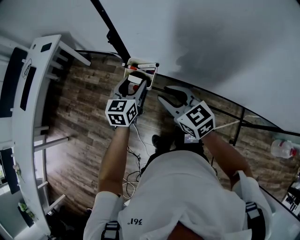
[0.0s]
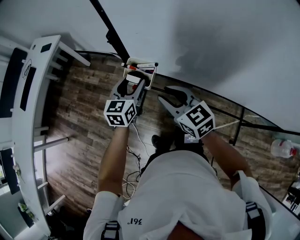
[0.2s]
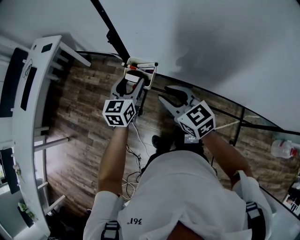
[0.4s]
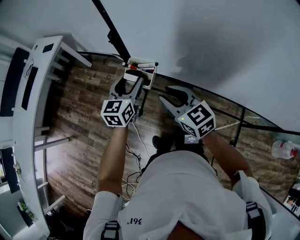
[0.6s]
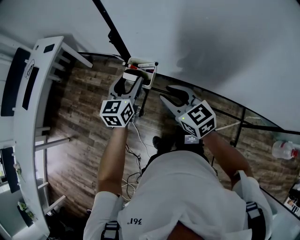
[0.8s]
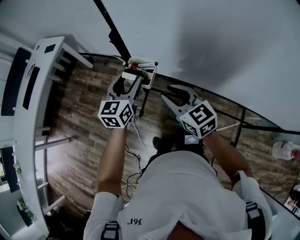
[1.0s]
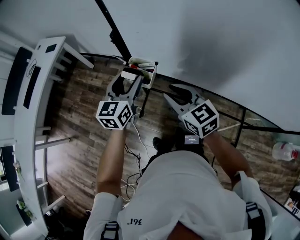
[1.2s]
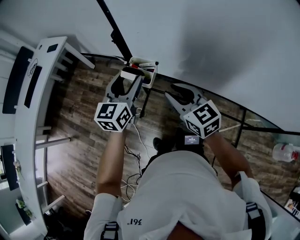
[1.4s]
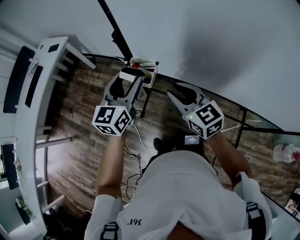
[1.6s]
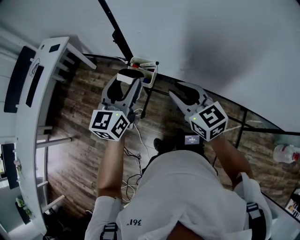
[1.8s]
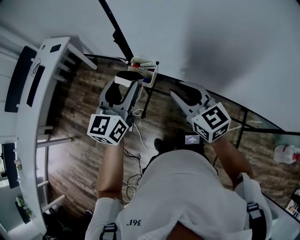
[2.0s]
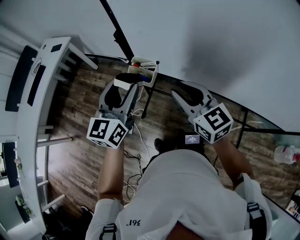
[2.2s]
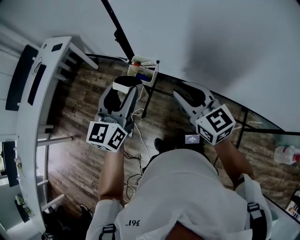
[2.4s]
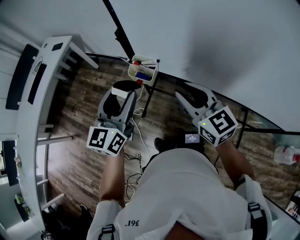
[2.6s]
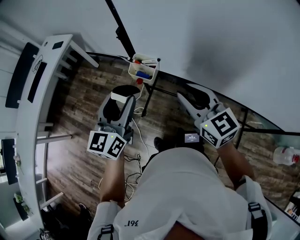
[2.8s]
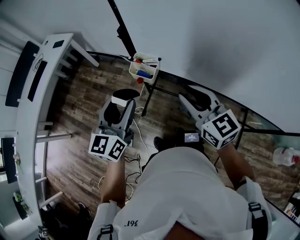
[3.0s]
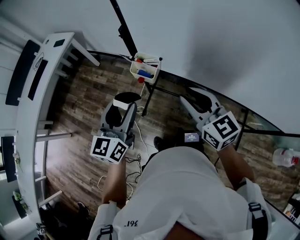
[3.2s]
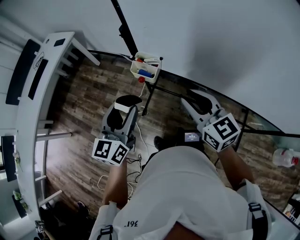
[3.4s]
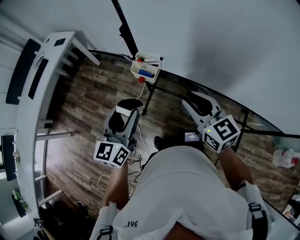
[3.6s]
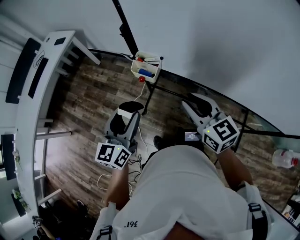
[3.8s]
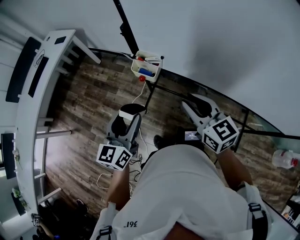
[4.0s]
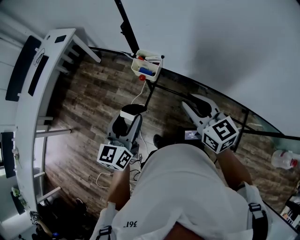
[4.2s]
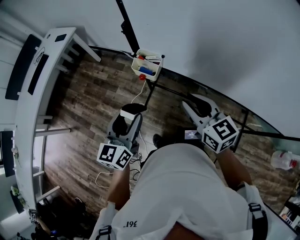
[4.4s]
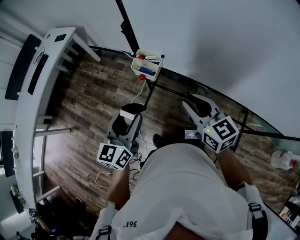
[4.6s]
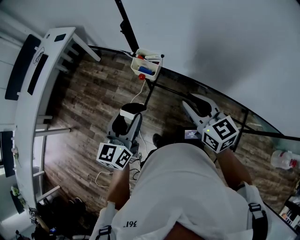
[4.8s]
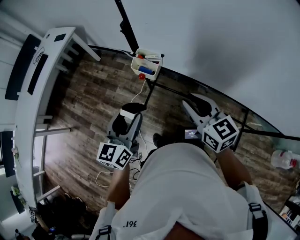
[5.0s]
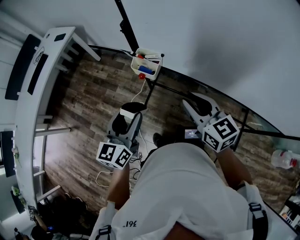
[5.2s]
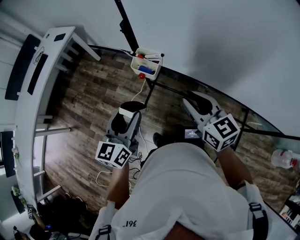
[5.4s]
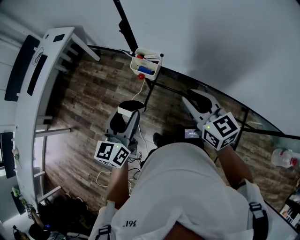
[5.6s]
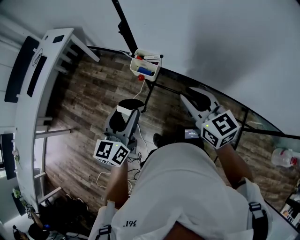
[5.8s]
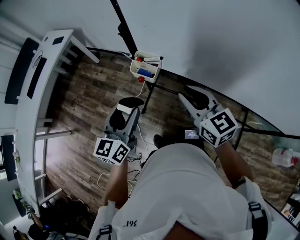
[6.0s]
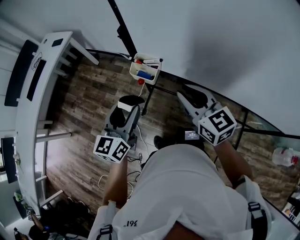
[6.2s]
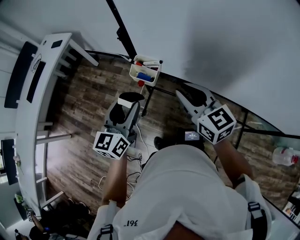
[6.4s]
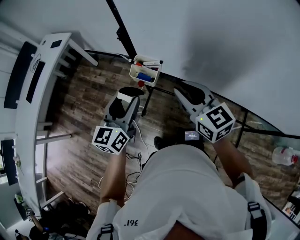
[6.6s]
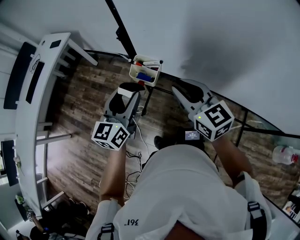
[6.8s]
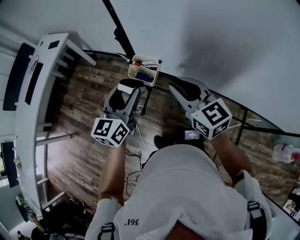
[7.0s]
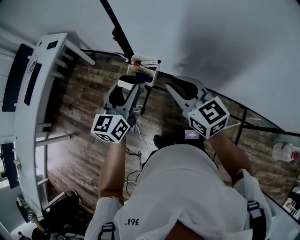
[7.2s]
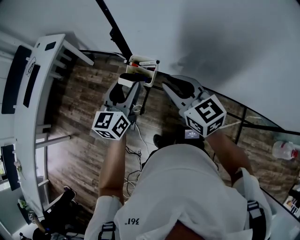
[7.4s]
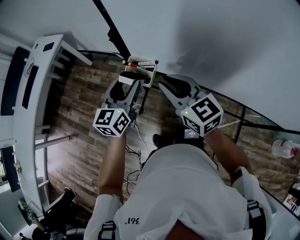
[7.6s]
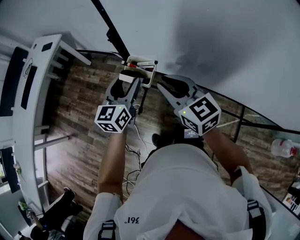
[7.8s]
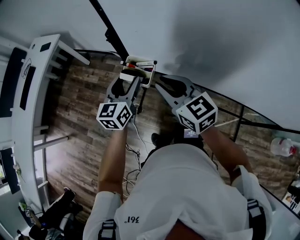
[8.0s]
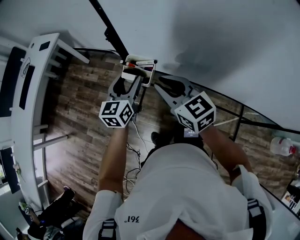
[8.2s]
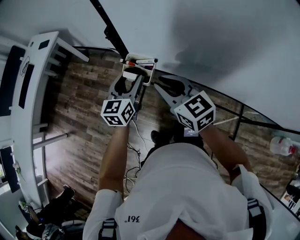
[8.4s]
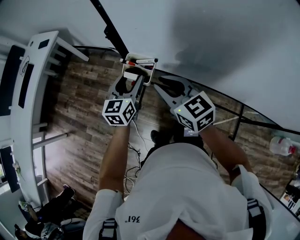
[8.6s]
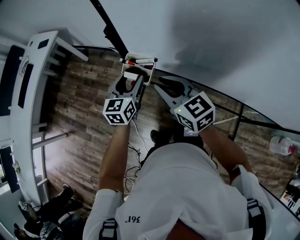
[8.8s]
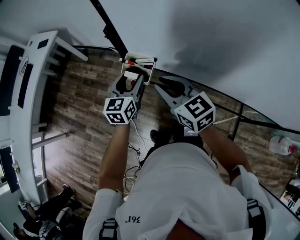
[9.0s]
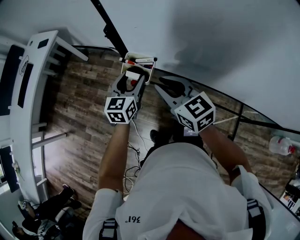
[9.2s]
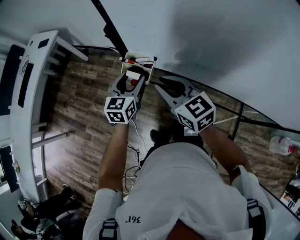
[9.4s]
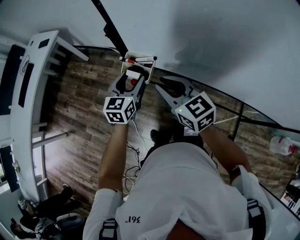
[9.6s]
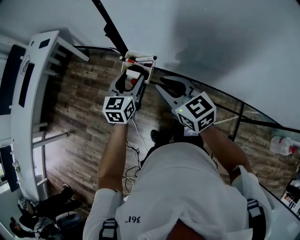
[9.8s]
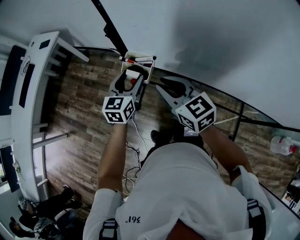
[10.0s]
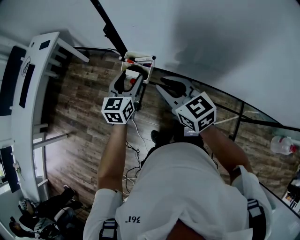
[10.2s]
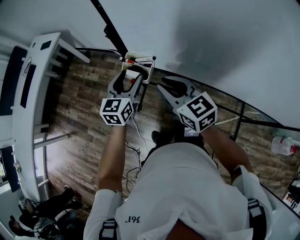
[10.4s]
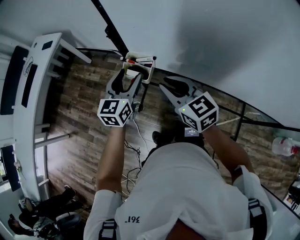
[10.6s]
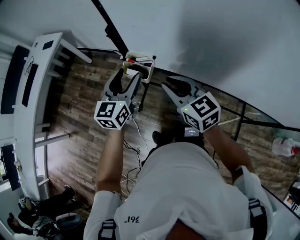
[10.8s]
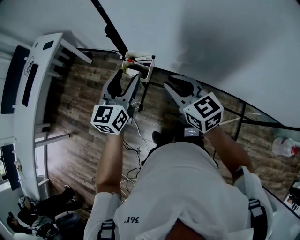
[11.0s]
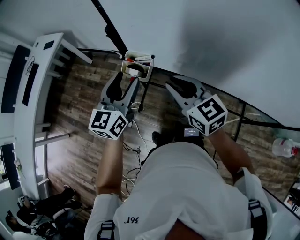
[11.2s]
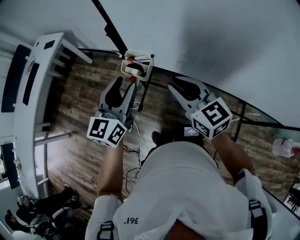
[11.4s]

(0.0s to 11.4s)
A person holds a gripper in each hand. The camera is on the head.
0.0s - 1.4s: The left gripper travels upward by about 10 cm.
1.4s - 2.8s: The left gripper goes some 10 cm backward. The right gripper is displaced upward by approximately 5 cm.
2.8s - 4.2s: The right gripper shifts by approximately 5 cm. Meanwhile the left gripper shifts about 10 cm downward and backward.
4.2s - 5.6s: There are only small adjustments of the grippers.
5.6s - 7.2s: The right gripper moves forward, some 5 cm. Meanwhile the left gripper shifts some 10 cm forward.
7.2s - 8.6s: The right gripper ends up approximately 5 cm from where it was; the left gripper travels downward and forward by approximately 10 cm.
8.6s - 10.0s: The grippers stay close to where they were, moving slightly.
10.0s - 11.4s: The right gripper ends up some 5 cm from where it was; the left gripper goes some 15 cm upward and backward.

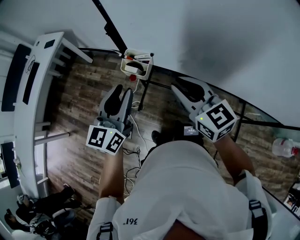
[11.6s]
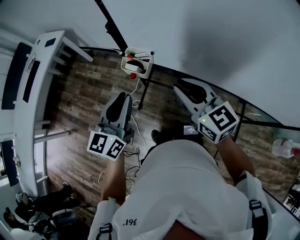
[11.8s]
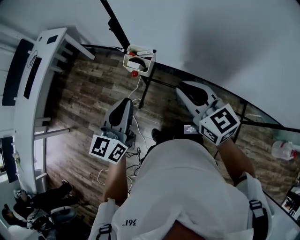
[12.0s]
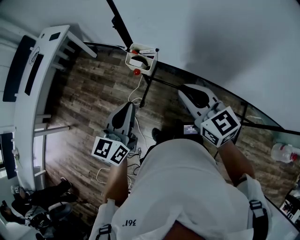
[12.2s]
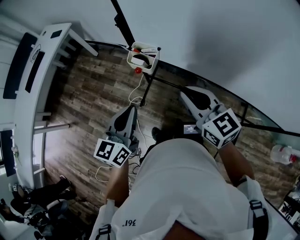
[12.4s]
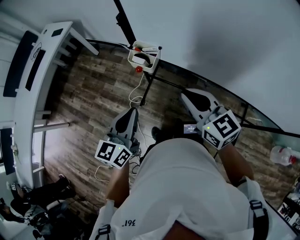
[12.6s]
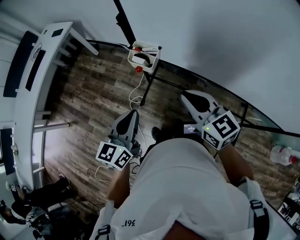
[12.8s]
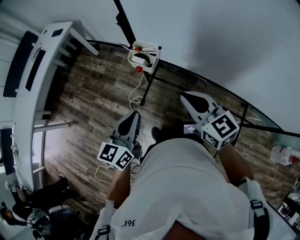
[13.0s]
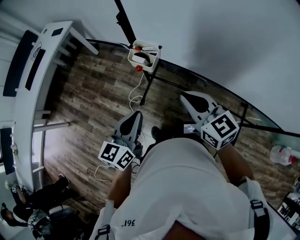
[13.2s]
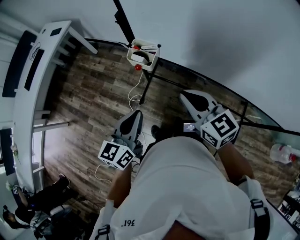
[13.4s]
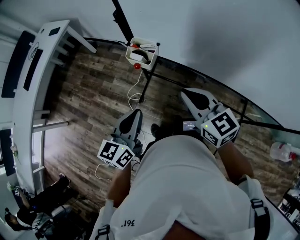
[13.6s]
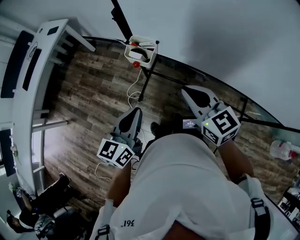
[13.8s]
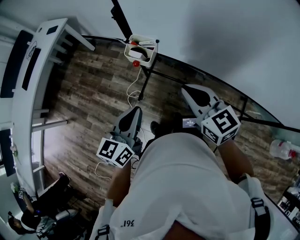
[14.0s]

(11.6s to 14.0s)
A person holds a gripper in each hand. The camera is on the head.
11.6s - 12.8s: The left gripper shifts approximately 10 cm backward and downward, and closes. The right gripper is displaced backward by roughly 5 cm.
12.8s - 14.0s: The grippers make only small movements.

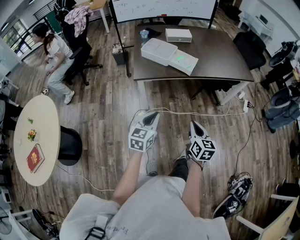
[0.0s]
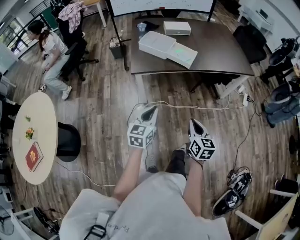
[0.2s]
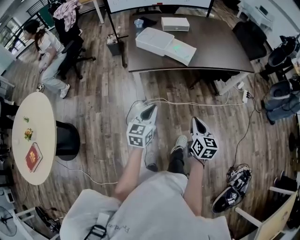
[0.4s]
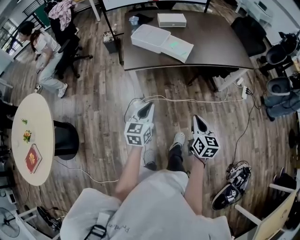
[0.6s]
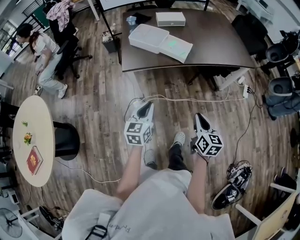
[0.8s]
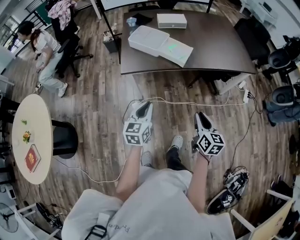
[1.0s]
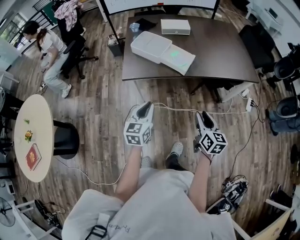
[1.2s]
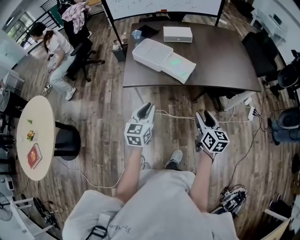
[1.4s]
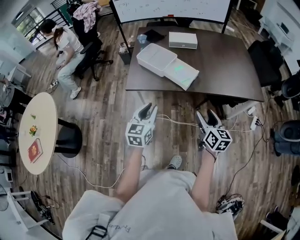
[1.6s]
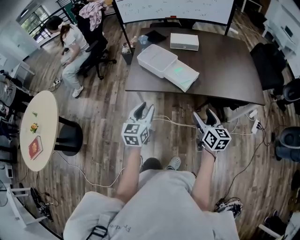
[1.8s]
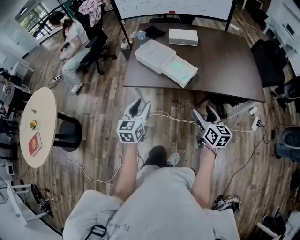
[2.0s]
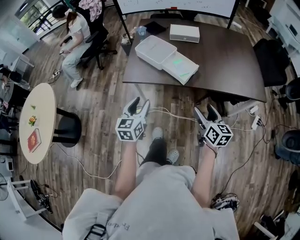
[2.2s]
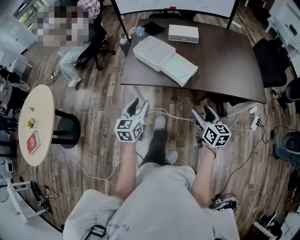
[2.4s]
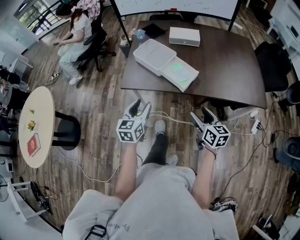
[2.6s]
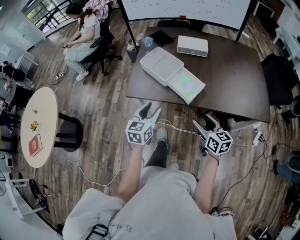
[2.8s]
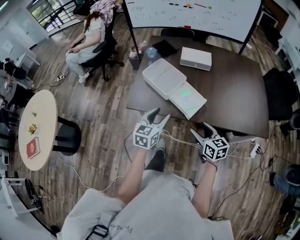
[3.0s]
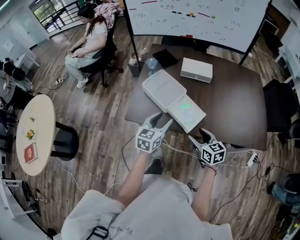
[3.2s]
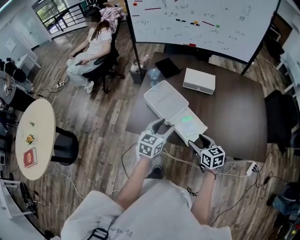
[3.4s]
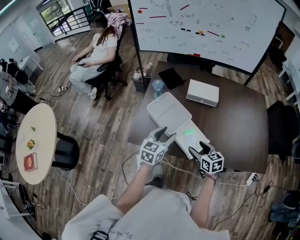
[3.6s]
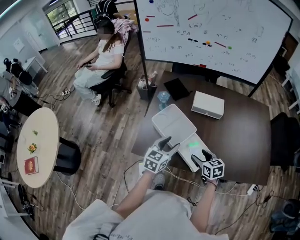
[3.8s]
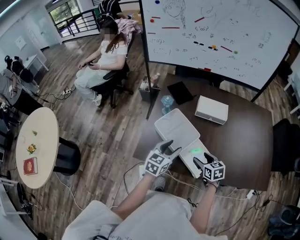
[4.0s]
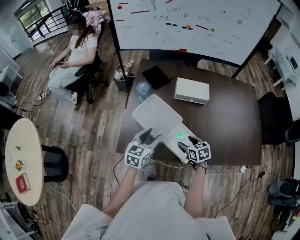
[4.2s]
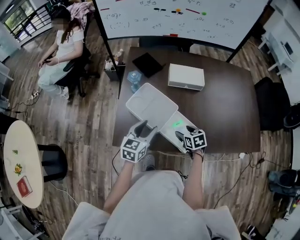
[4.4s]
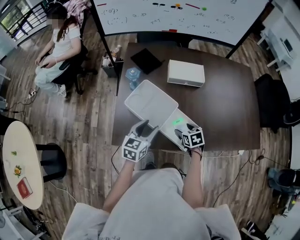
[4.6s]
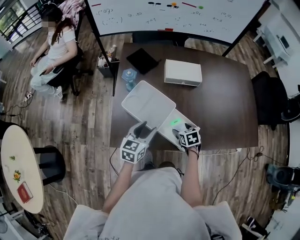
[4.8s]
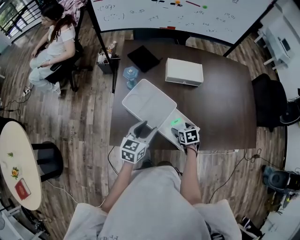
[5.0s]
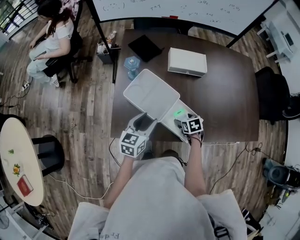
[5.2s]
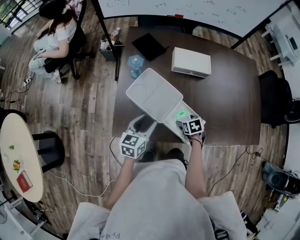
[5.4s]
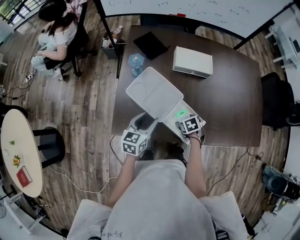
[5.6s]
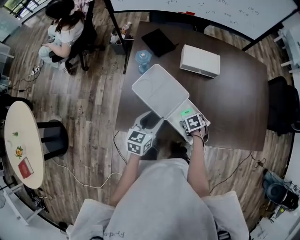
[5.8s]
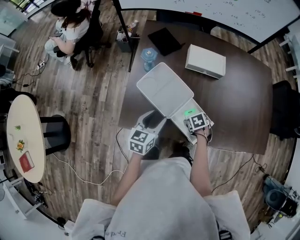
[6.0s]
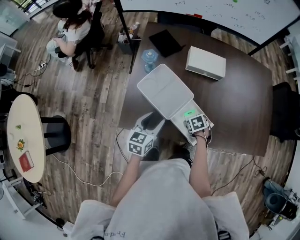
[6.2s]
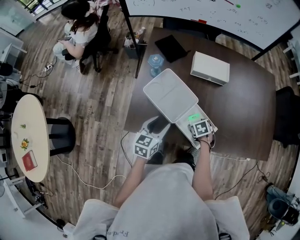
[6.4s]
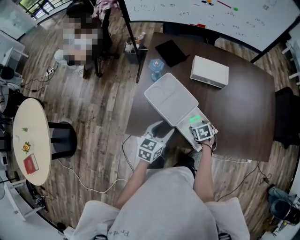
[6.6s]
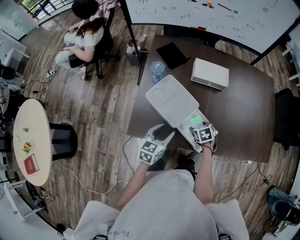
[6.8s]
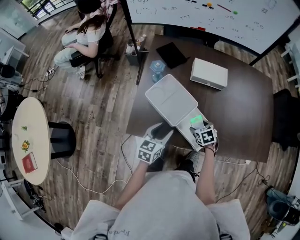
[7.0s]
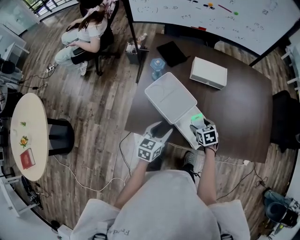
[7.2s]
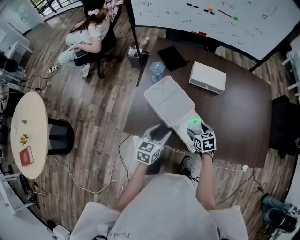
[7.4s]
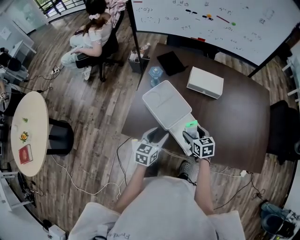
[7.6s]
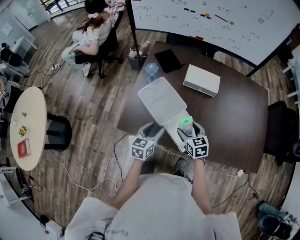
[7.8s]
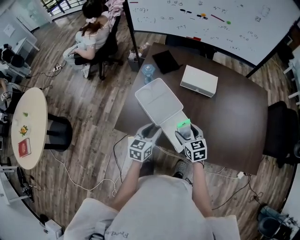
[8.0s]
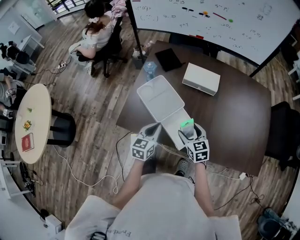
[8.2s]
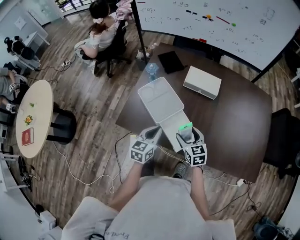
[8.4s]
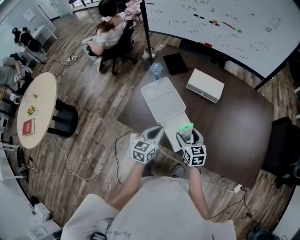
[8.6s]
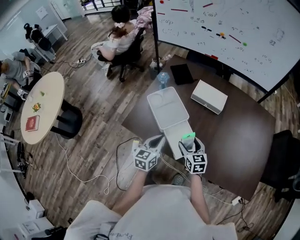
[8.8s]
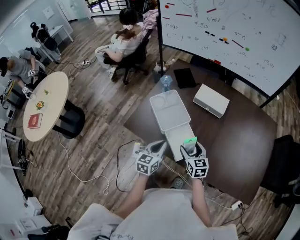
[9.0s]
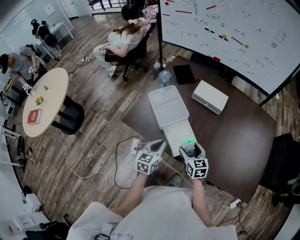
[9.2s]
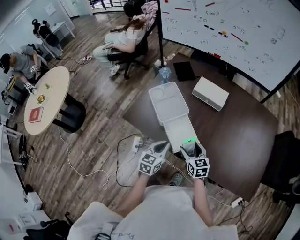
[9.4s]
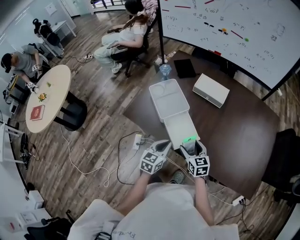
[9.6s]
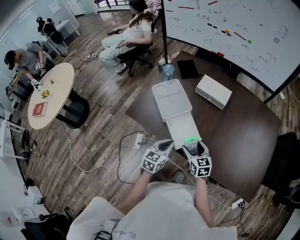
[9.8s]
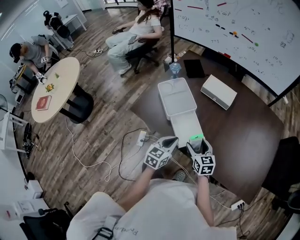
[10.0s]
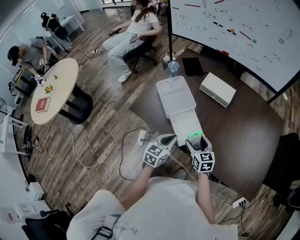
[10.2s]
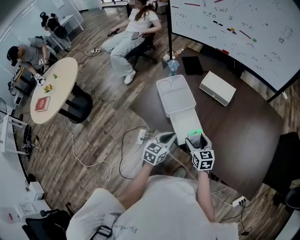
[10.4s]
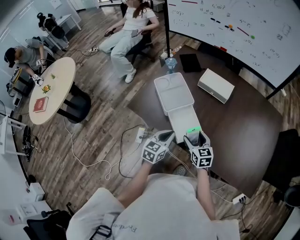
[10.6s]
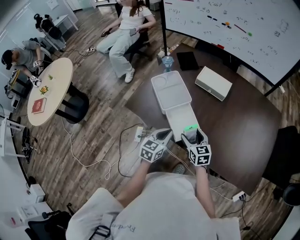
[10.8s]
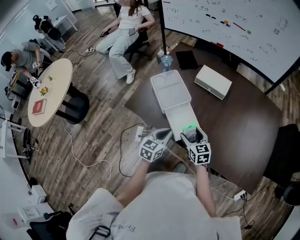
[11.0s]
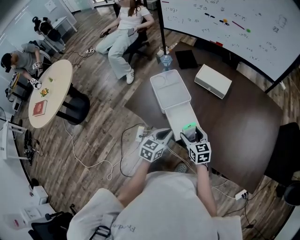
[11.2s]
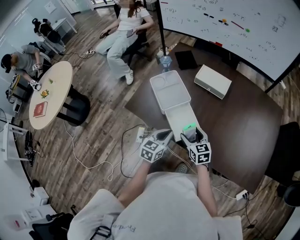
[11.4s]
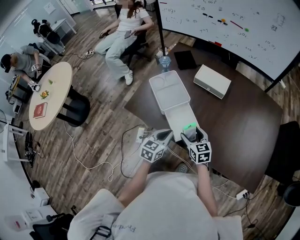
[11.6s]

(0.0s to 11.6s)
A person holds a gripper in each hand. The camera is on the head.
0.0s - 1.4s: The right gripper shifts some 25 cm forward and to the right, and opens its fingers. The left gripper goes some 20 cm forward.
1.4s - 2.8s: Both grippers travel together forward, some 15 cm. The right gripper rotates about 20 degrees; the left gripper opens its fingers.
2.8s - 4.4s: The left gripper heads forward, covering some 25 cm; the right gripper shifts about 30 cm forward and downward, and points its fingers approximately 30 degrees further downward.
4.4s - 5.8s: The right gripper heads downward, covering about 10 cm, and changes its angle by roughly 30 degrees.
5.8s - 7.2s: The right gripper goes approximately 10 cm upward, and changes its angle by roughly 20 degrees.
7.2s - 8.8s: The right gripper moves upward, about 10 cm, and tips its fingers upward by approximately 30 degrees. Meanwhile the left gripper moves to the right, about 10 cm, changes its angle by some 20 degrees, and closes up.
8.8s - 10.2s: The right gripper moves backward, about 5 cm, while the left gripper moves backward and to the right, some 10 cm.
10.2s - 11.6s: Both grippers stay about where they are.
